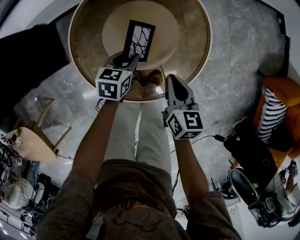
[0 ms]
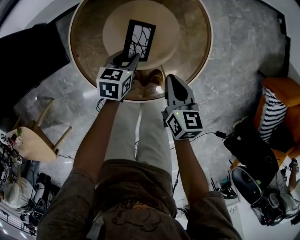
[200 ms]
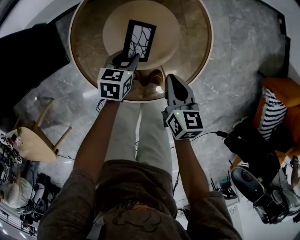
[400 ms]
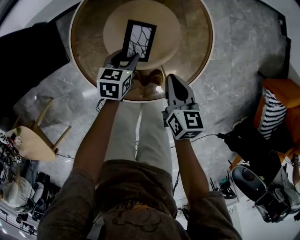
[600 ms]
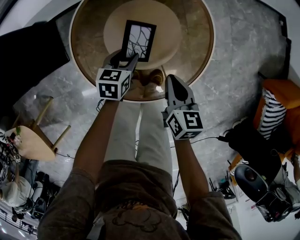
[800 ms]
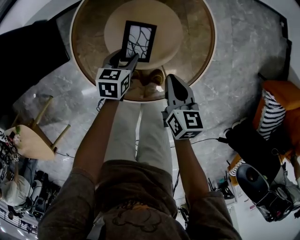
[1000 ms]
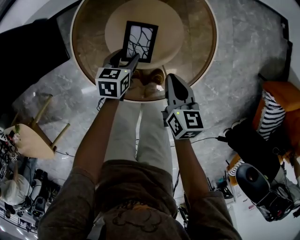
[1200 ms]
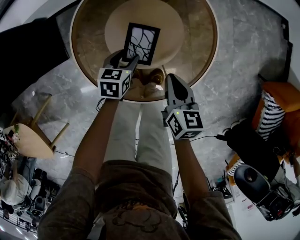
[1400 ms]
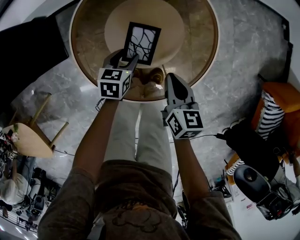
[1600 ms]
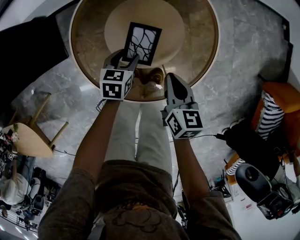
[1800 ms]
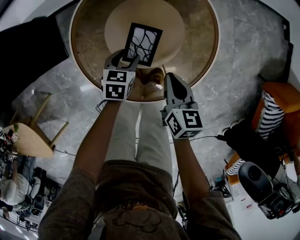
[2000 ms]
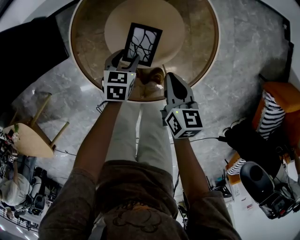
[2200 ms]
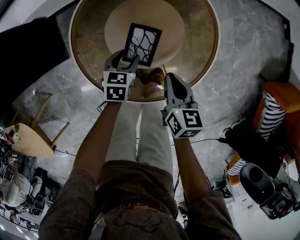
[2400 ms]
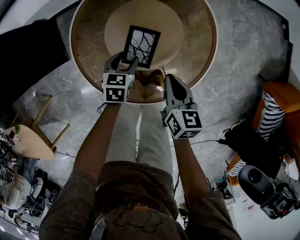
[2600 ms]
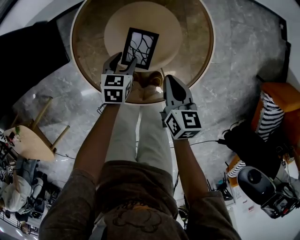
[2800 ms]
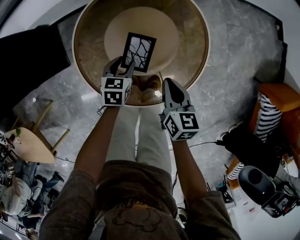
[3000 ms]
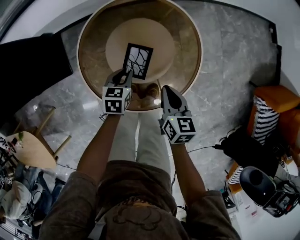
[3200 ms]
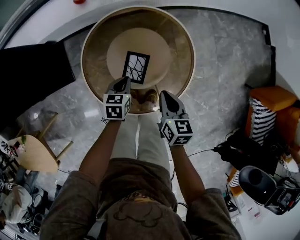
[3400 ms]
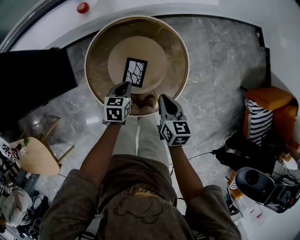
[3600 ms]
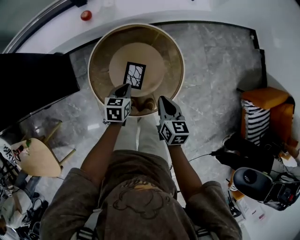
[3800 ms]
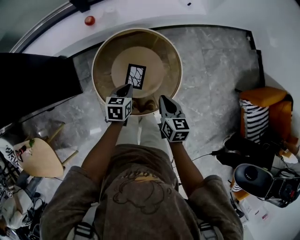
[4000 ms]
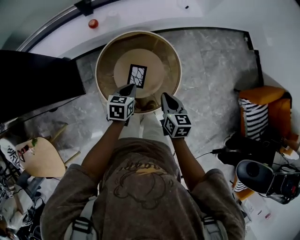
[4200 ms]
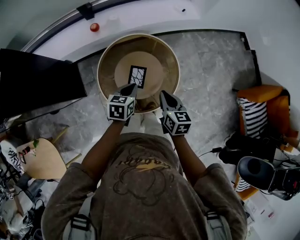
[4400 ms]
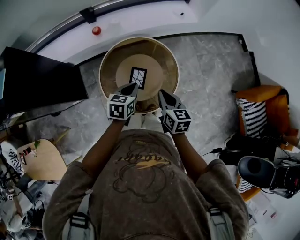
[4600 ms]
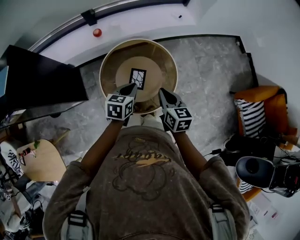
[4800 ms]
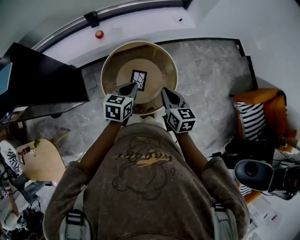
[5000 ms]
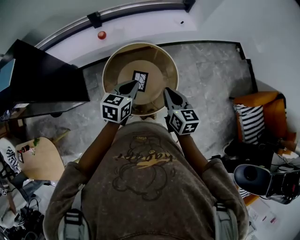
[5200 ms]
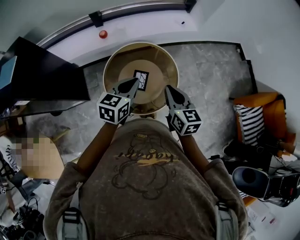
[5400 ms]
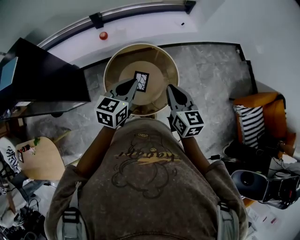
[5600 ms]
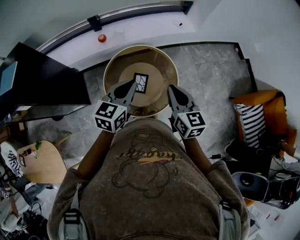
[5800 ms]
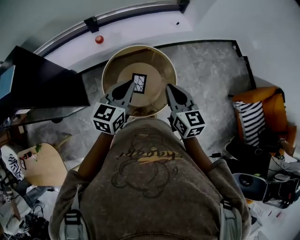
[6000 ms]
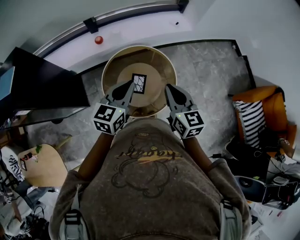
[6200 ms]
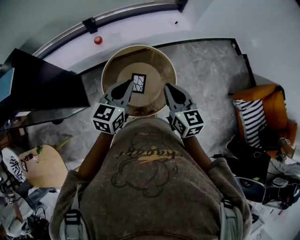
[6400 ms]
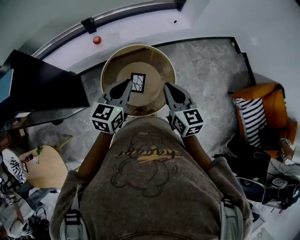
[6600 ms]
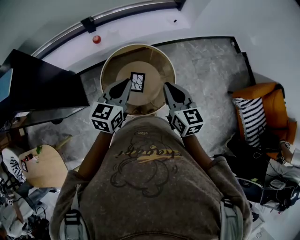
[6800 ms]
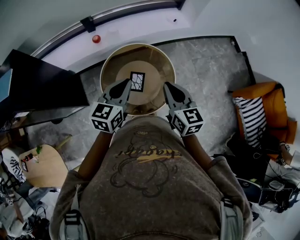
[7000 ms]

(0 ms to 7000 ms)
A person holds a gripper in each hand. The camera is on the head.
0 ms - 1400 ms: The right gripper changes place by about 5 cm. The left gripper is displaced downward by roughly 5 cm, and opens.
1400 ms - 2800 ms: The grippers move only a little.
2800 ms - 4200 ms: The two grippers go some 25 cm upward. The left gripper closes its fingers.
4200 ms - 5600 ms: The grippers both shift upward by some 20 cm. The left gripper turns by about 30 degrees.
5600 ms - 7000 ms: The grippers move only a little.

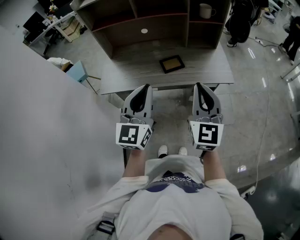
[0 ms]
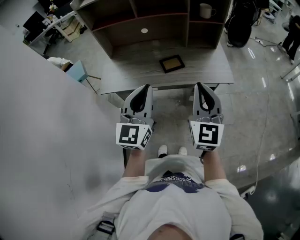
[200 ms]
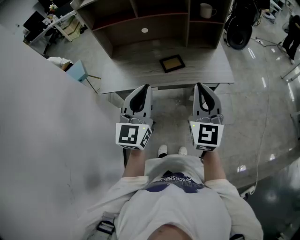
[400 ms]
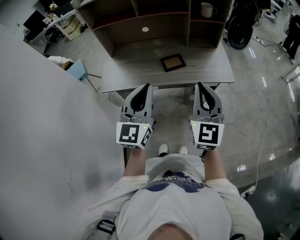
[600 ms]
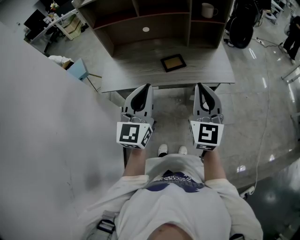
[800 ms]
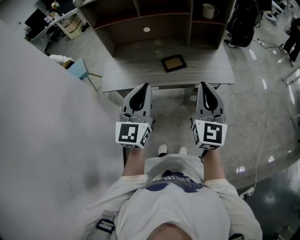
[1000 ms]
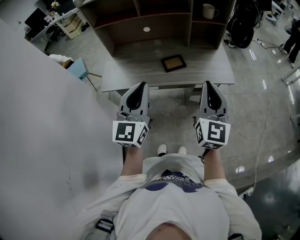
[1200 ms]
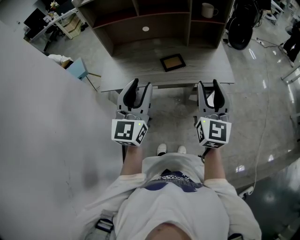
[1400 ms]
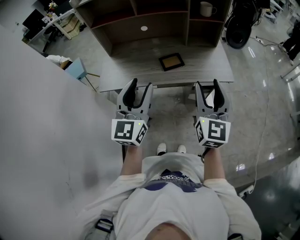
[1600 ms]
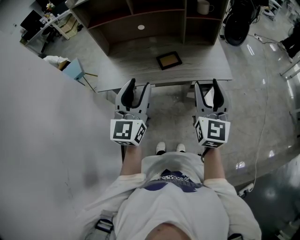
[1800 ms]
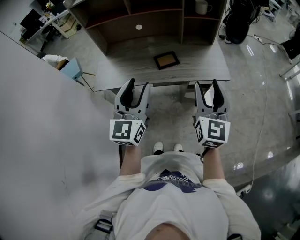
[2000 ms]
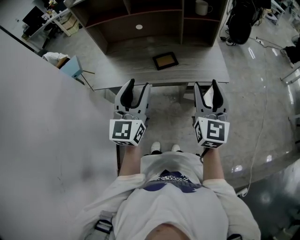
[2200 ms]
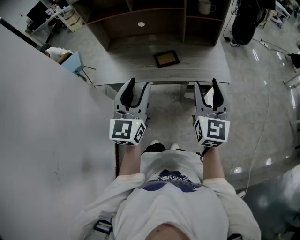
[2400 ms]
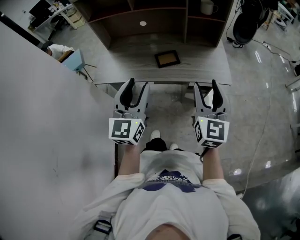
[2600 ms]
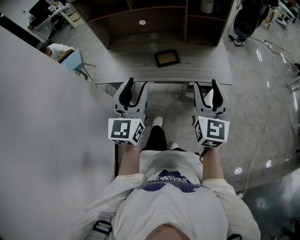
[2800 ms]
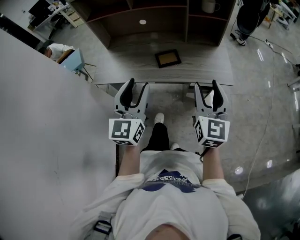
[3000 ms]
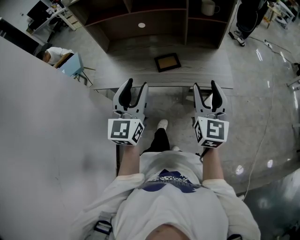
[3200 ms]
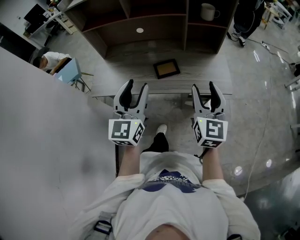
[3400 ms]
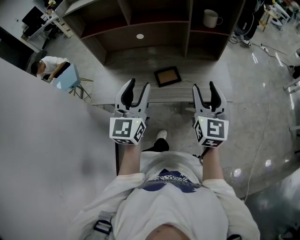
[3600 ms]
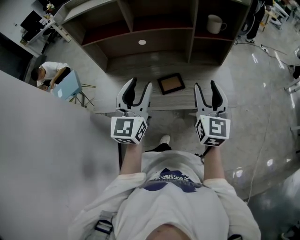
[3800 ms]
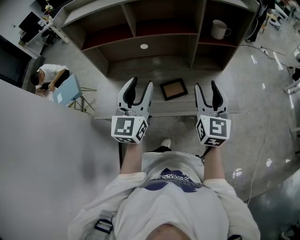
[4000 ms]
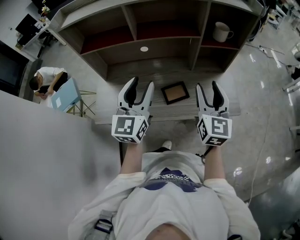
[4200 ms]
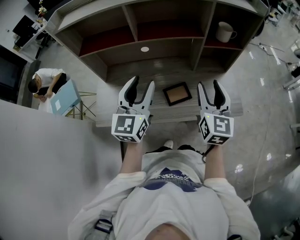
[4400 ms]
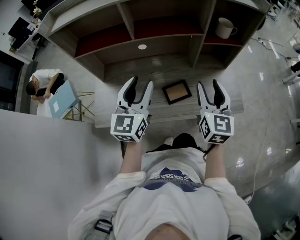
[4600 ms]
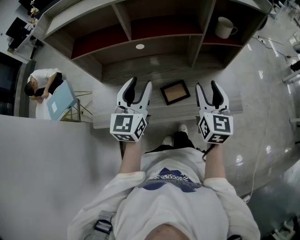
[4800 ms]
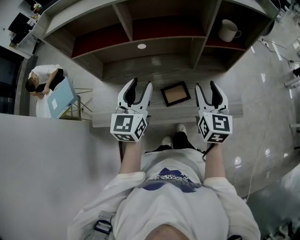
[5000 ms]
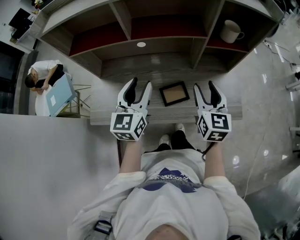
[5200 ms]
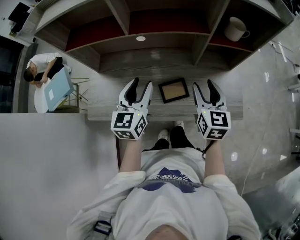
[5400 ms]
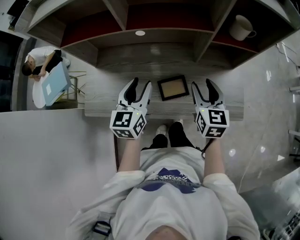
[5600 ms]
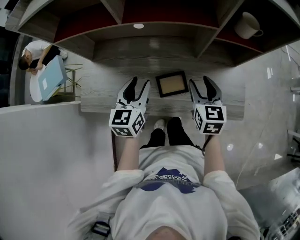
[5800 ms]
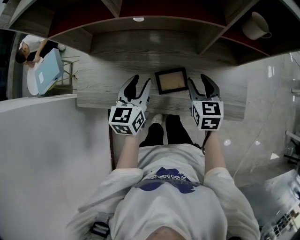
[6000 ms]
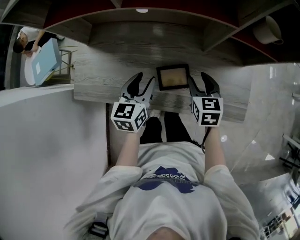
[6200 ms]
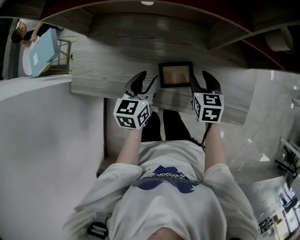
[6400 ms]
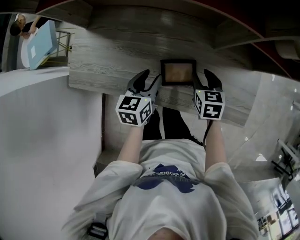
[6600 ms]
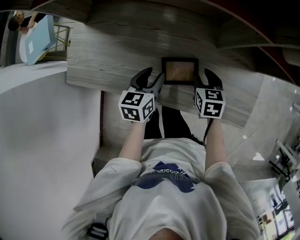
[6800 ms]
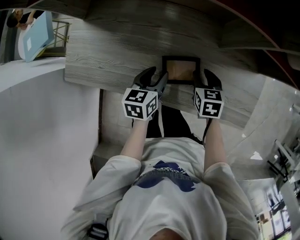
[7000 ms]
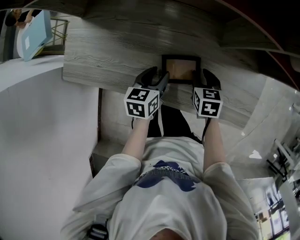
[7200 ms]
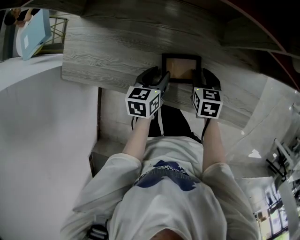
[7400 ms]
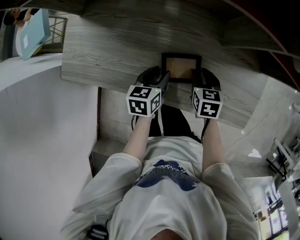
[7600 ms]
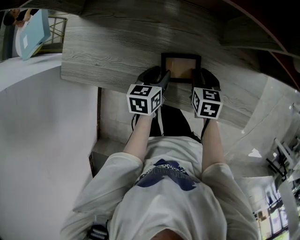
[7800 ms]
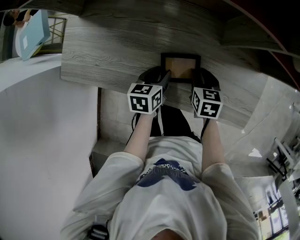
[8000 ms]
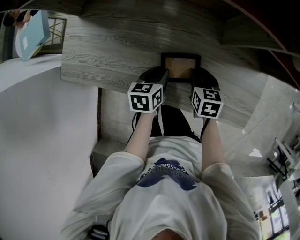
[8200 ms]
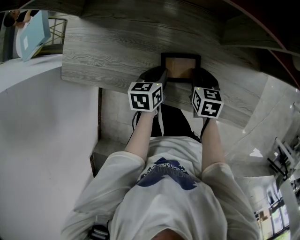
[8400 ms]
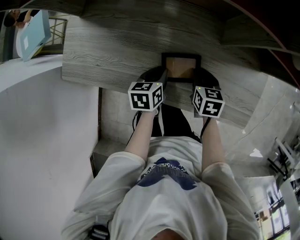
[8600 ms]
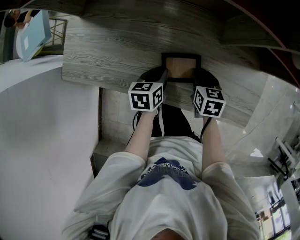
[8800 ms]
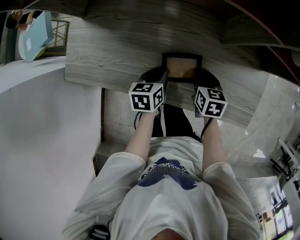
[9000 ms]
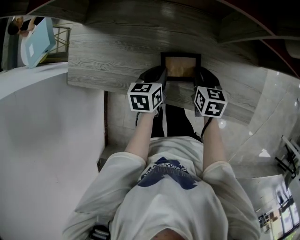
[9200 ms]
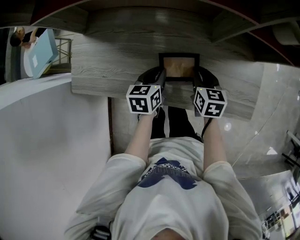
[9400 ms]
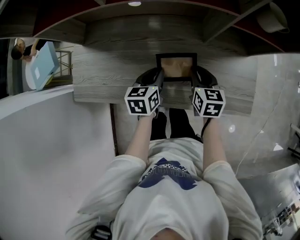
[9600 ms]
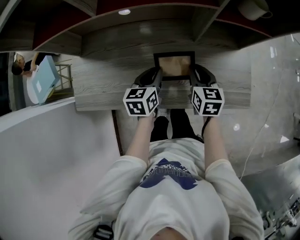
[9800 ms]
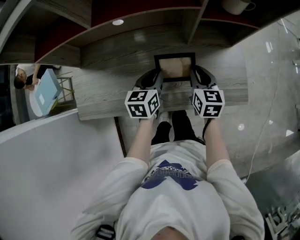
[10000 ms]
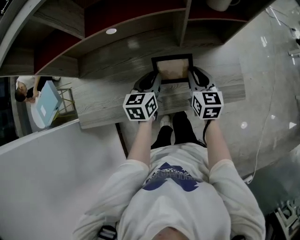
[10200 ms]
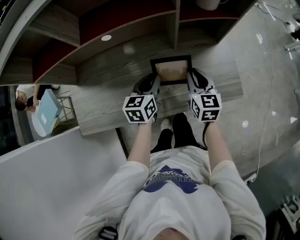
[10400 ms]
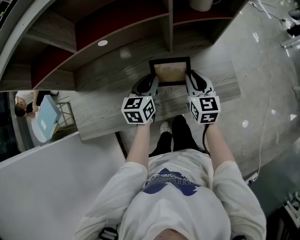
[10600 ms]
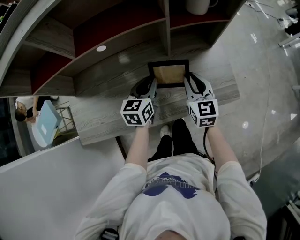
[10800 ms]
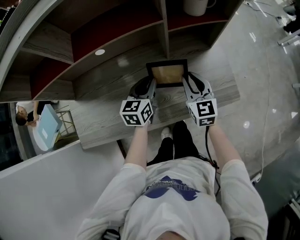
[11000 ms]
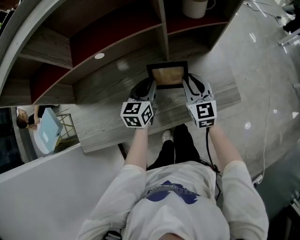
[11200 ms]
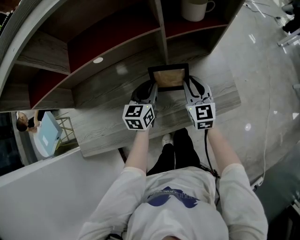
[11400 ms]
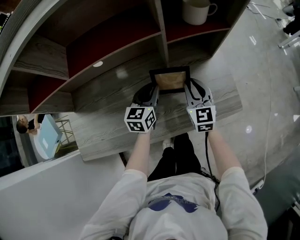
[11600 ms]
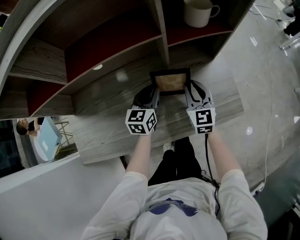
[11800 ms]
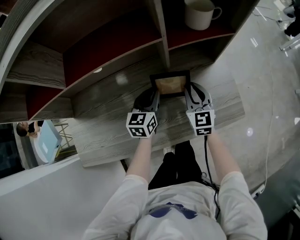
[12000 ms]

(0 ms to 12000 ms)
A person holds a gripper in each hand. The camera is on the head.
0 ms - 1600 ms: The right gripper opens up; the left gripper opens.
1600 ms - 3000 ms: The two grippers go approximately 5 cm to the right.
3000 ms - 4400 ms: The grippers both shift forward and to the left by about 25 cm.
4400 ms - 6000 ms: The left gripper travels downward by about 20 cm, and rotates roughly 30 degrees. Meanwhile the right gripper shifts about 25 cm downward and forward, and changes its angle by roughly 30 degrees.
6000 ms - 7600 ms: Both grippers move downward, approximately 20 cm. The left gripper changes its angle by some 30 degrees. The right gripper turns by some 20 degrees.
7600 ms - 9000 ms: The left gripper closes its fingers.
9000 ms - 10400 ms: The two grippers go roughly 15 cm upward and to the right. The left gripper turns by some 30 degrees. Meanwhile the right gripper changes its angle by about 30 degrees.
10400 ms - 12000 ms: The left gripper travels forward by about 10 cm, while the right gripper travels forward and downward by roughly 10 cm.

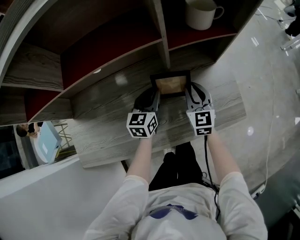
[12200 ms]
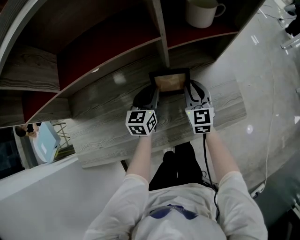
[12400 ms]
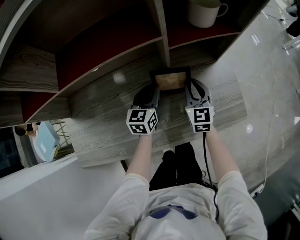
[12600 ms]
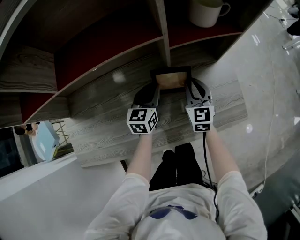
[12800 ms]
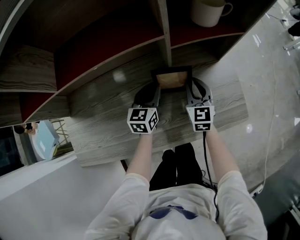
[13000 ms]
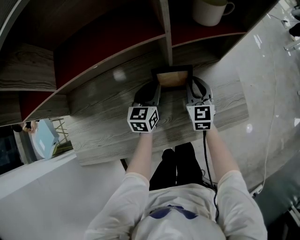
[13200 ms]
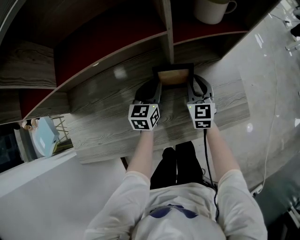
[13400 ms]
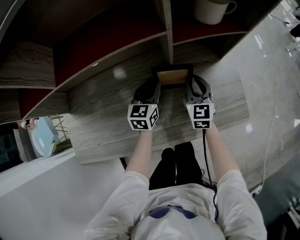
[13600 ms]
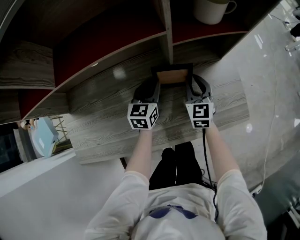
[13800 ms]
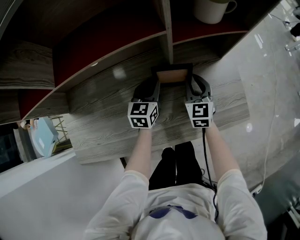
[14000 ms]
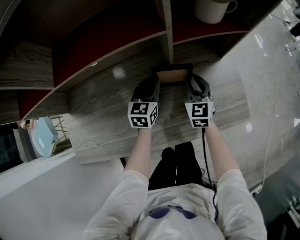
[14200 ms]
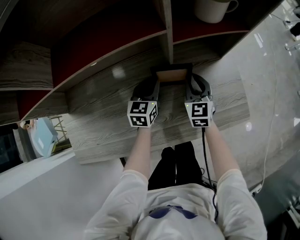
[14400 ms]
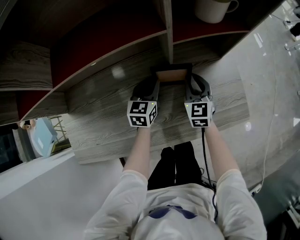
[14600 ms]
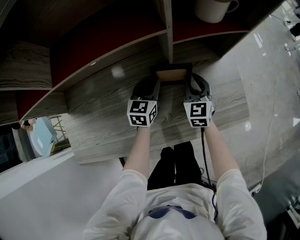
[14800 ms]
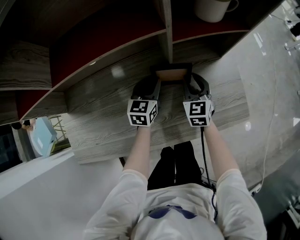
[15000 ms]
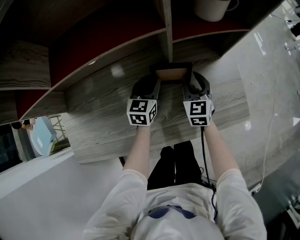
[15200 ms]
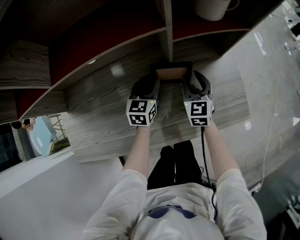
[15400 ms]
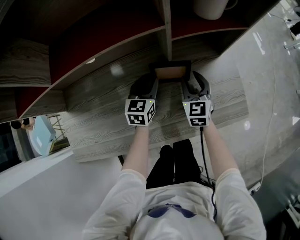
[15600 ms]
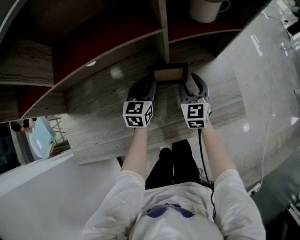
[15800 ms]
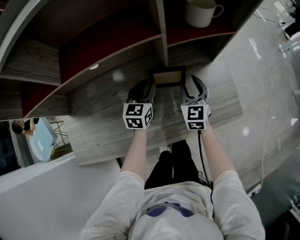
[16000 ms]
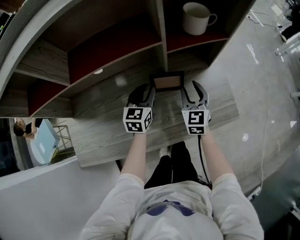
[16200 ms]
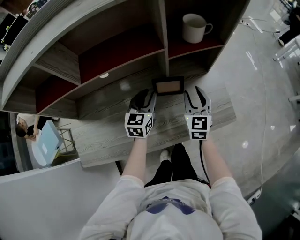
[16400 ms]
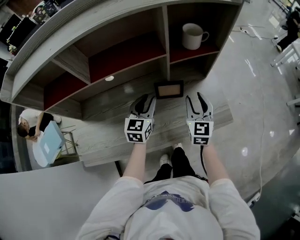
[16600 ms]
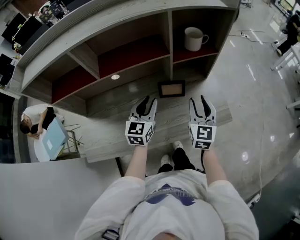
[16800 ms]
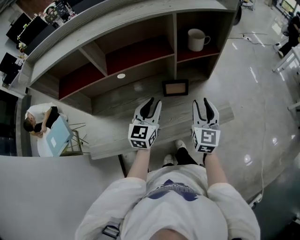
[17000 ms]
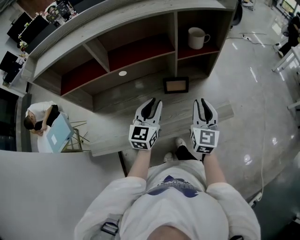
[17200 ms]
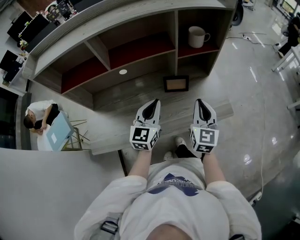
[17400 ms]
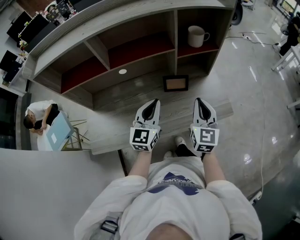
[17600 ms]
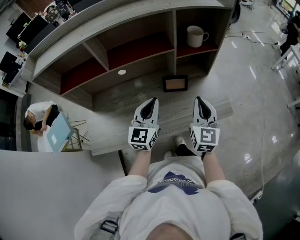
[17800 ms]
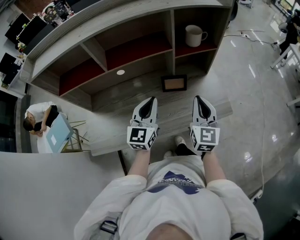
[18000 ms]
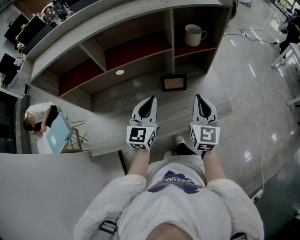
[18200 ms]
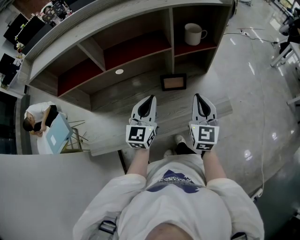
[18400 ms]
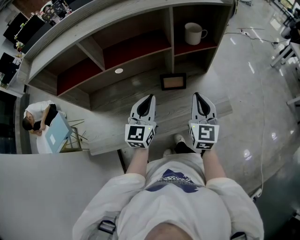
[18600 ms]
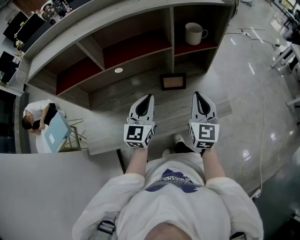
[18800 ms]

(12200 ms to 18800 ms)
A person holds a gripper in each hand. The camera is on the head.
12200 ms - 15400 ms: The grippers move only a little.
15400 ms - 17200 ms: Both grippers move upward and backward, roughly 30 cm. The right gripper changes its angle by some 20 degrees.
17200 ms - 18800 ms: The left gripper closes.
